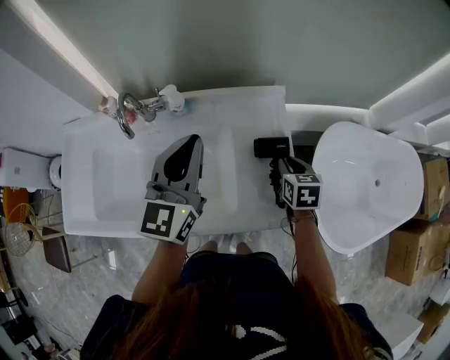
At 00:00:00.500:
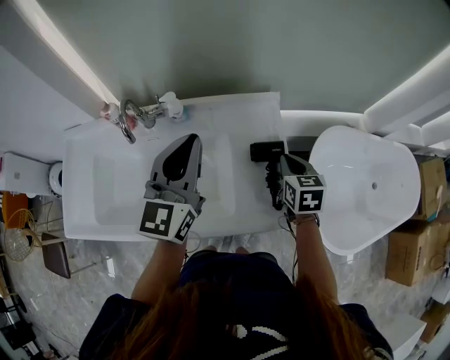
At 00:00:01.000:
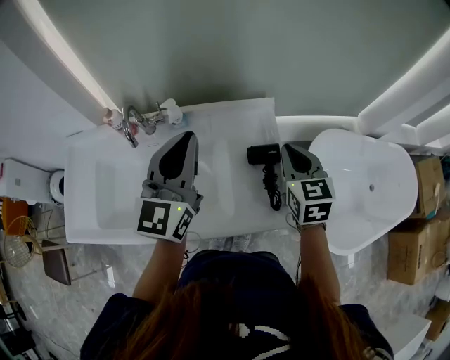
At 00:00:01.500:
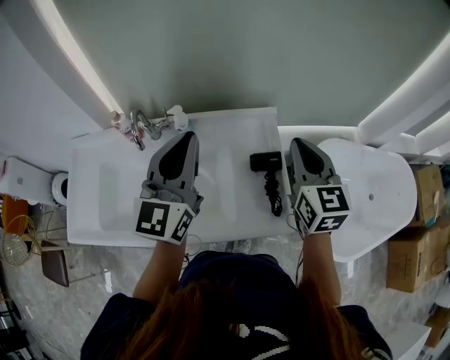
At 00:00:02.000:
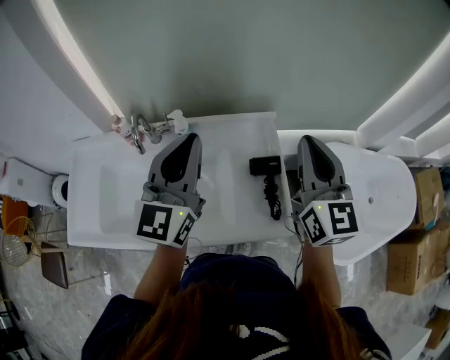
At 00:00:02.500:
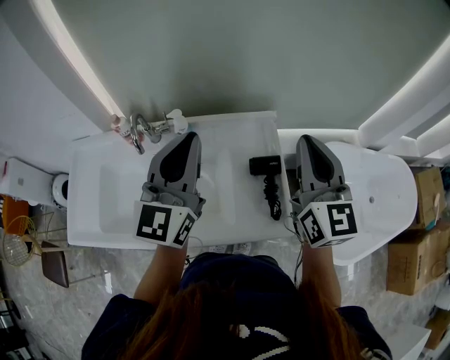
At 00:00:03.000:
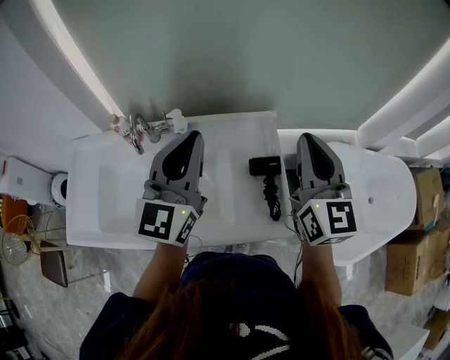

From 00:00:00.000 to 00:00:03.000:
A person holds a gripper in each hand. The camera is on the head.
From 00:00:00.000 to 00:00:01.500: The right gripper travels upward by roughly 25 cm, and angles its fingers upward, by some 30 degrees. Meanwhile the left gripper travels upward by about 10 cm.
From 00:00:01.500 to 00:00:03.000: The right gripper travels upward by approximately 5 cm.

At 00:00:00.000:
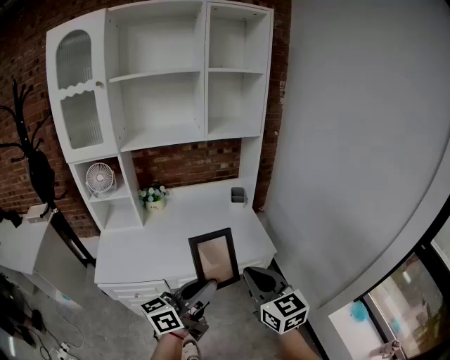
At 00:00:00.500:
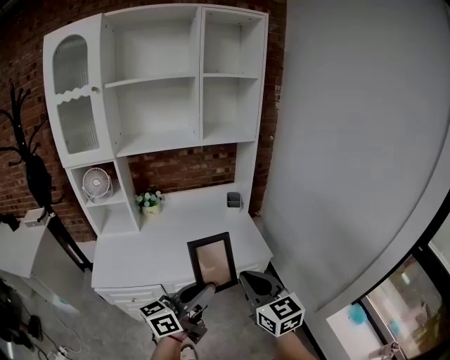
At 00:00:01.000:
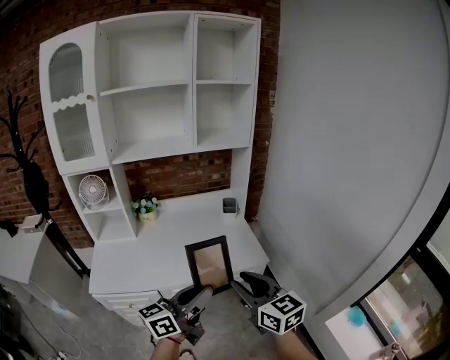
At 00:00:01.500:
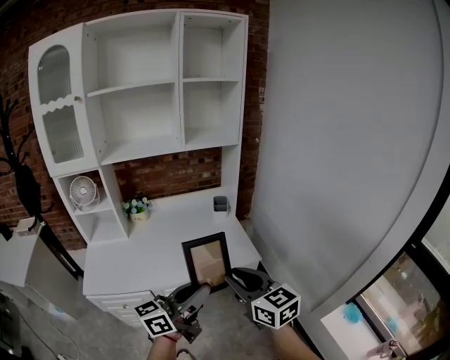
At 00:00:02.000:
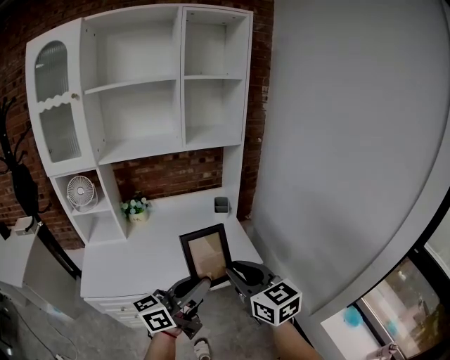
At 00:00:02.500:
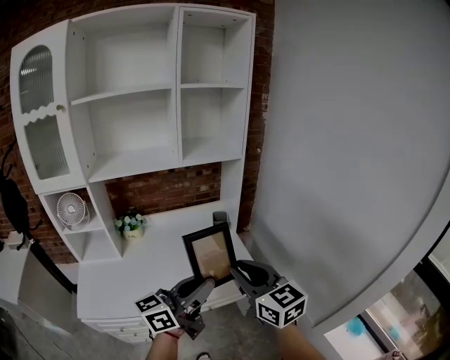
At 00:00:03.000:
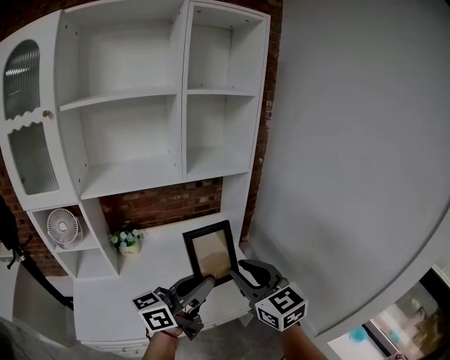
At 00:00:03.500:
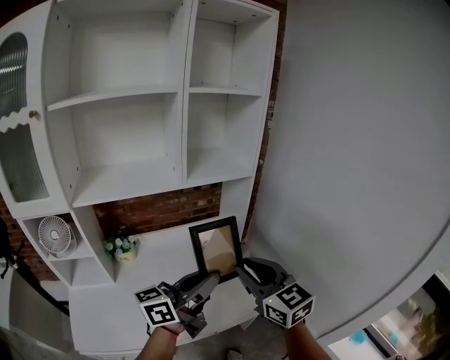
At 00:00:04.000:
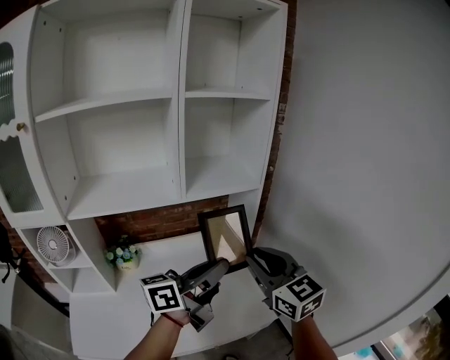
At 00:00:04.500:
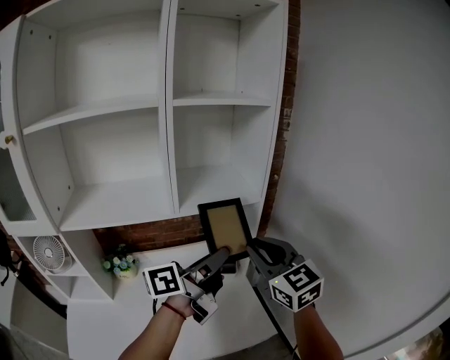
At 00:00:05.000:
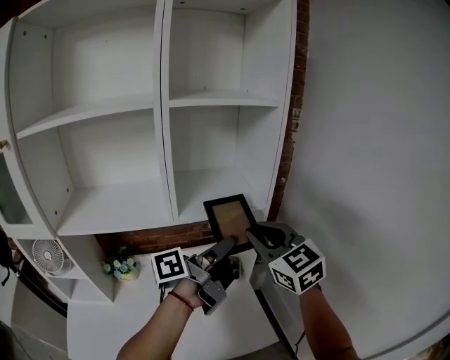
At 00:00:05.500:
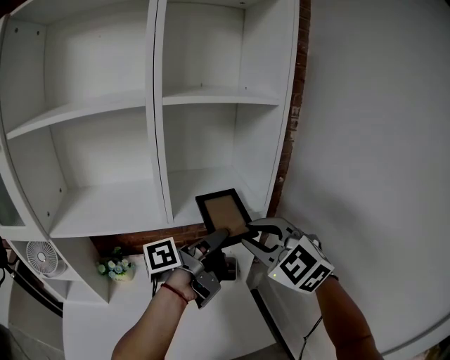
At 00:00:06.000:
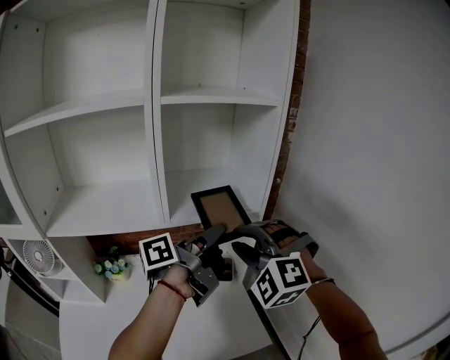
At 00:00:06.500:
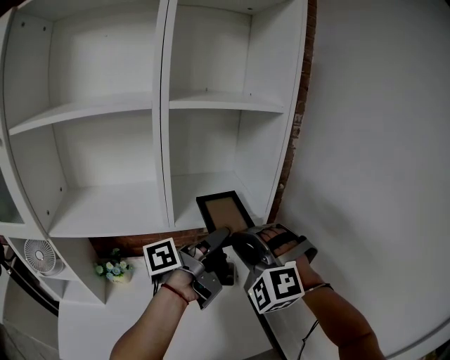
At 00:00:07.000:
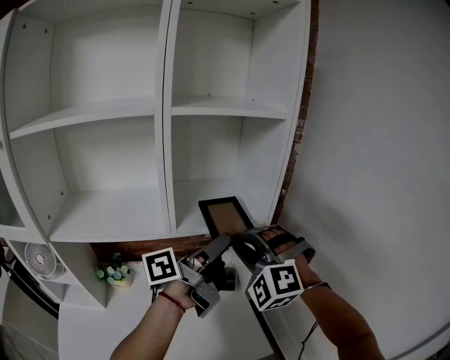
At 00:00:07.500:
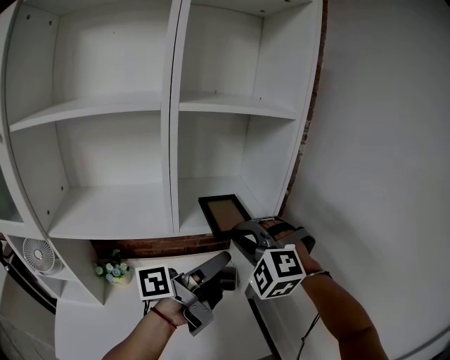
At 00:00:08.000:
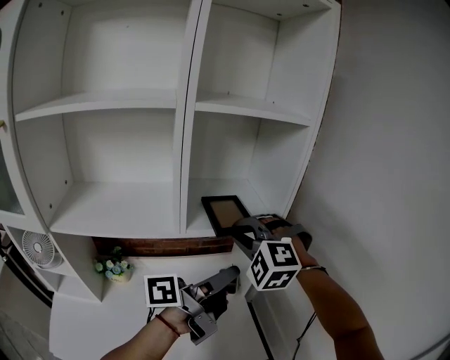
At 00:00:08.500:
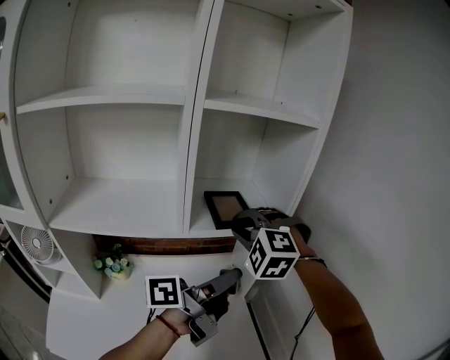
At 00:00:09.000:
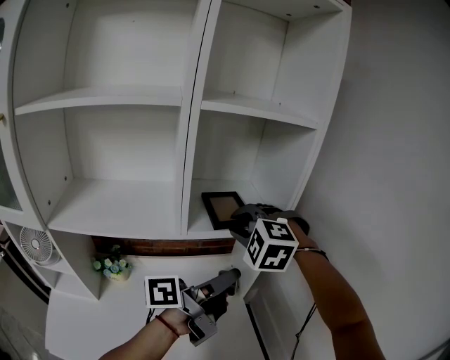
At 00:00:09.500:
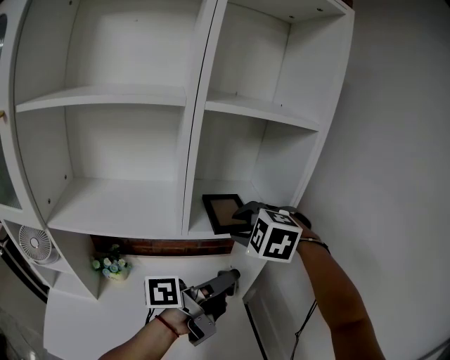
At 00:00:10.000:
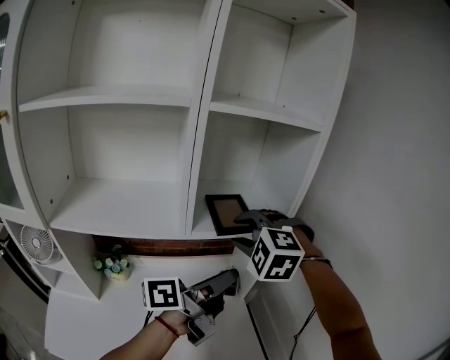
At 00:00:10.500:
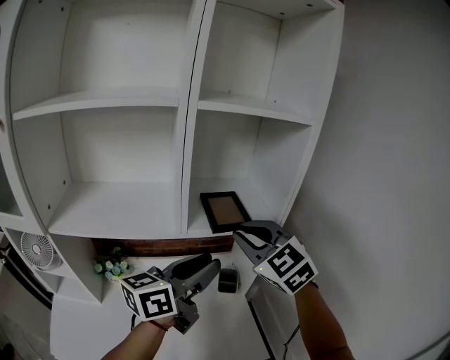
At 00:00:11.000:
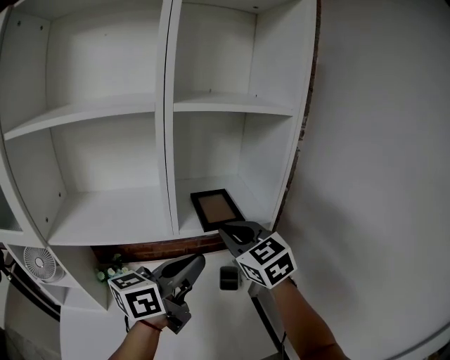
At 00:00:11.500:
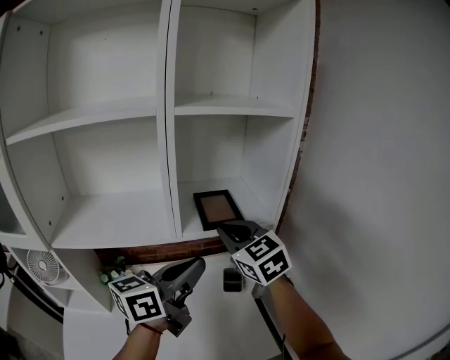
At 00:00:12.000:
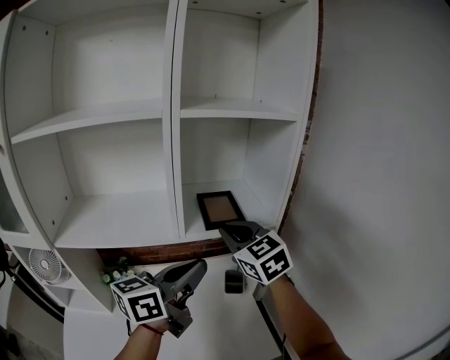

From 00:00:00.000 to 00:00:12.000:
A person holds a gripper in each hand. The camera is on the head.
From 00:00:00.000 to 00:00:02.000: The two grippers go roughly 5 cm forward.
From 00:00:02.000 to 00:00:04.000: Both grippers move forward, roughly 30 cm.
From 00:00:04.000 to 00:00:06.000: The two grippers go some 15 cm forward. The right gripper rotates around the line of its fingers by roughly 70 degrees, counterclockwise from behind, while the left gripper rotates roughly 40 degrees.
From 00:00:06.000 to 00:00:08.000: The left gripper goes roughly 5 cm backward, and opens; the right gripper travels forward and to the left by roughly 10 cm.
From 00:00:08.000 to 00:00:10.000: The right gripper opens.
From 00:00:10.000 to 00:00:12.000: The right gripper rolls clockwise, seen from behind, by some 50 degrees, and closes its fingers; the left gripper shifts some 5 cm to the left, swivels roughly 40 degrees, and closes up.

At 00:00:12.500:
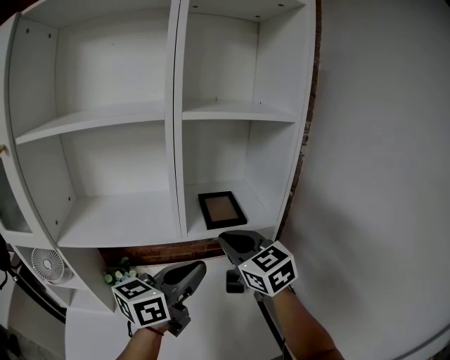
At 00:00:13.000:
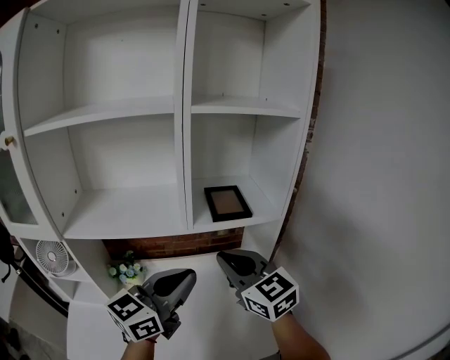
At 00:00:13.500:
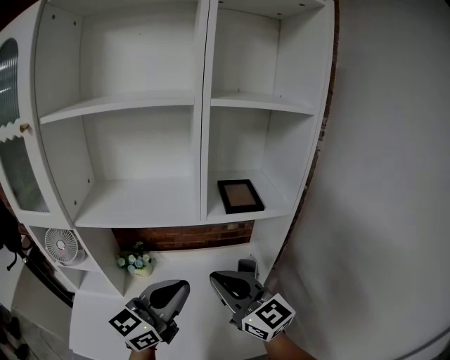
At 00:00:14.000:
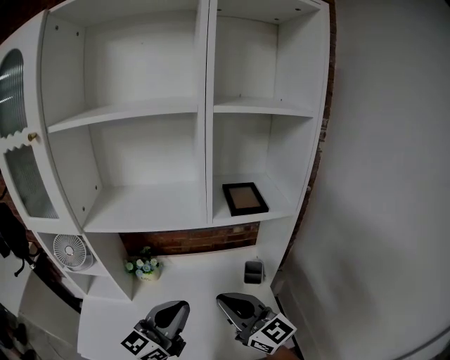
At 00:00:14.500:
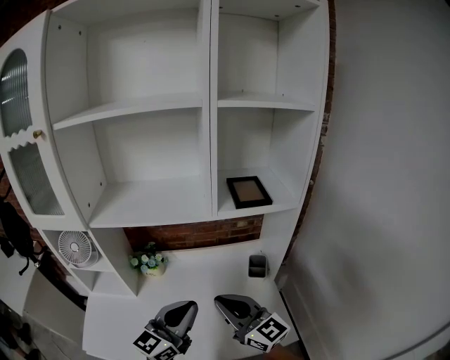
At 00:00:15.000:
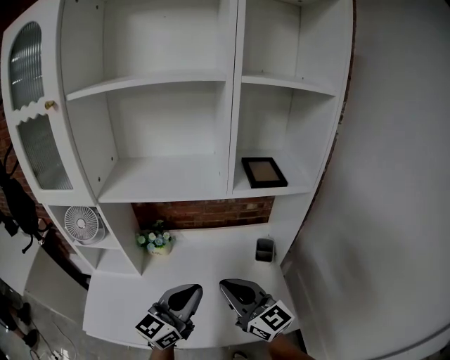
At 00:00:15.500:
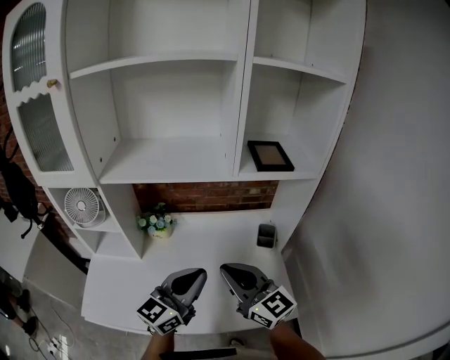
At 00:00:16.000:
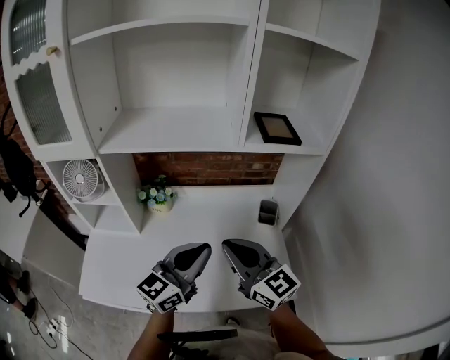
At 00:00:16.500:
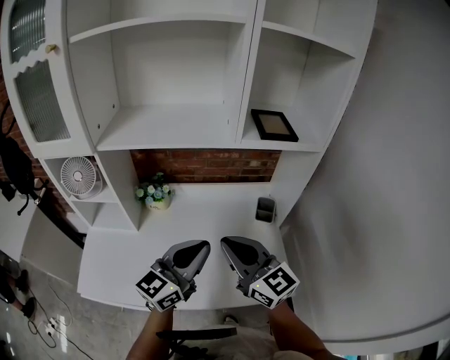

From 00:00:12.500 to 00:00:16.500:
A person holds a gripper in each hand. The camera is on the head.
From 00:00:12.500 to 00:00:14.500: The right gripper goes some 25 cm backward, downward and to the left, and rotates about 30 degrees. The left gripper travels downward, backward and to the left by some 20 cm, and changes its angle by roughly 20 degrees.
From 00:00:14.500 to 00:00:16.500: The grippers make only small movements.

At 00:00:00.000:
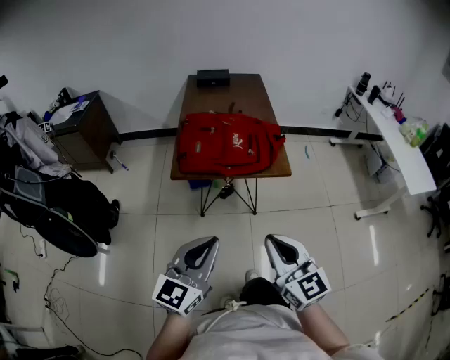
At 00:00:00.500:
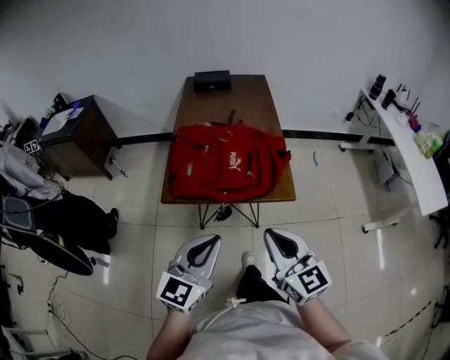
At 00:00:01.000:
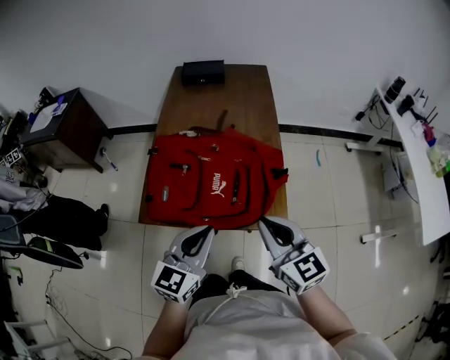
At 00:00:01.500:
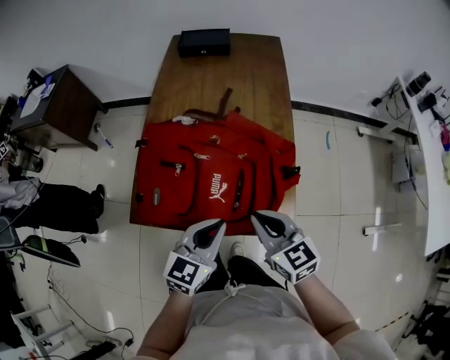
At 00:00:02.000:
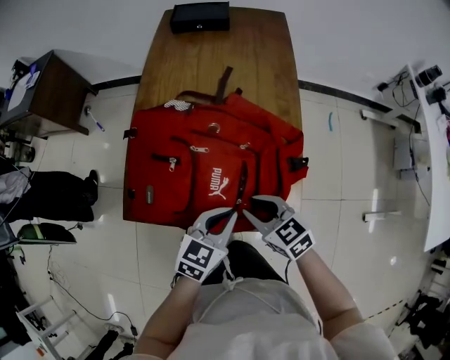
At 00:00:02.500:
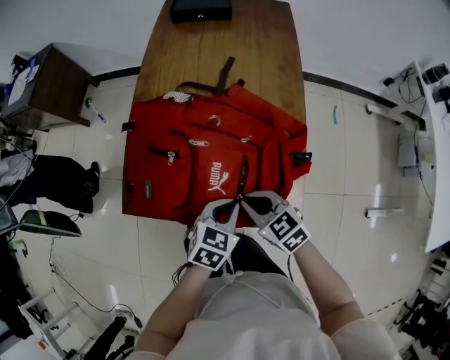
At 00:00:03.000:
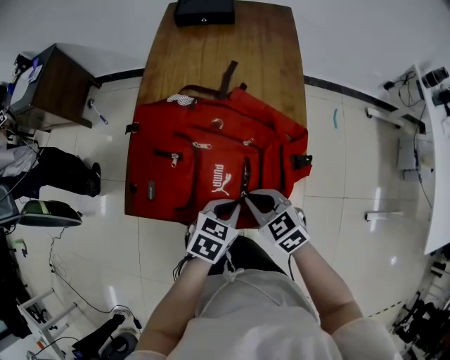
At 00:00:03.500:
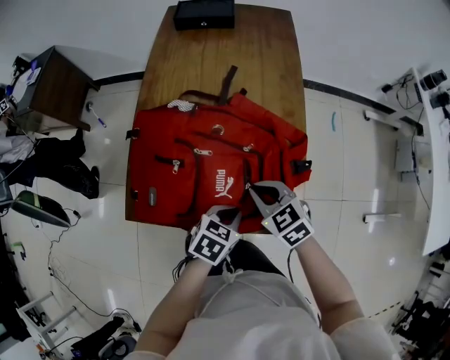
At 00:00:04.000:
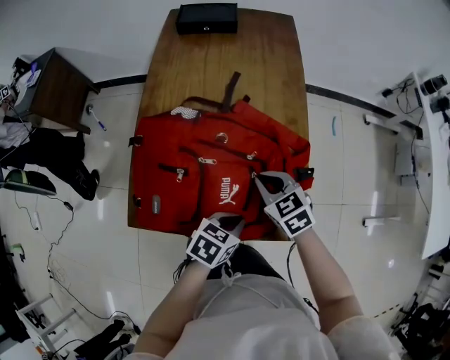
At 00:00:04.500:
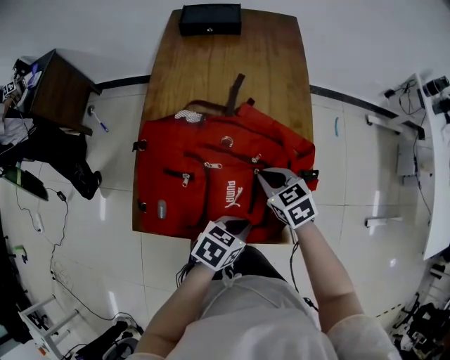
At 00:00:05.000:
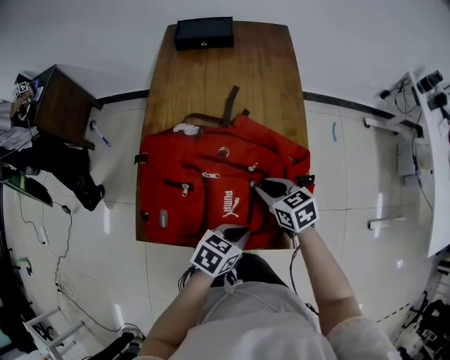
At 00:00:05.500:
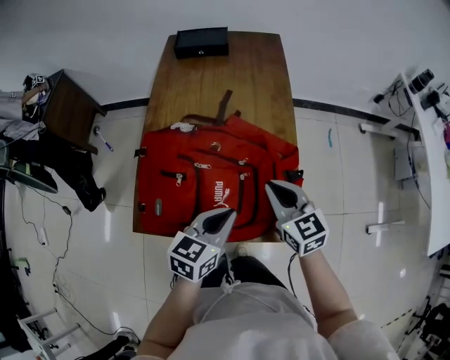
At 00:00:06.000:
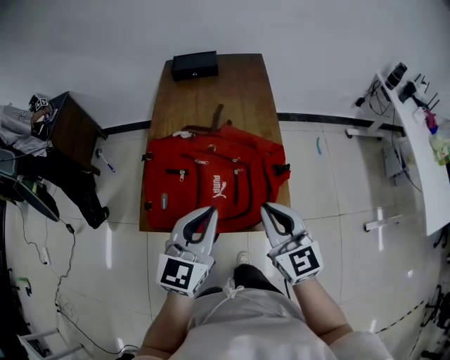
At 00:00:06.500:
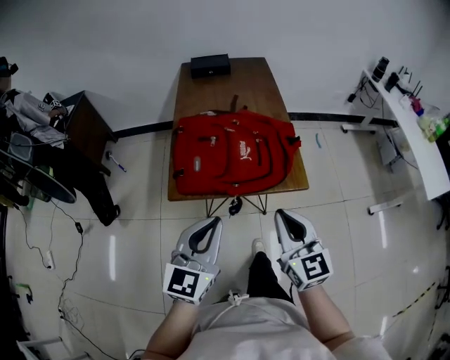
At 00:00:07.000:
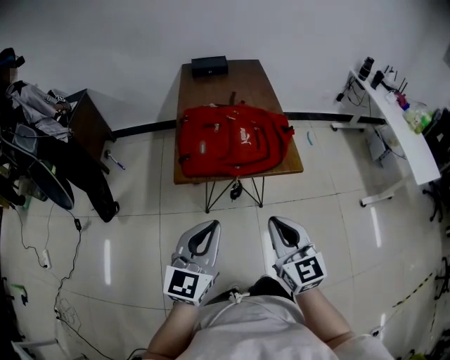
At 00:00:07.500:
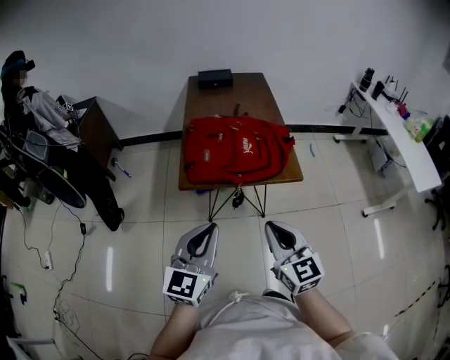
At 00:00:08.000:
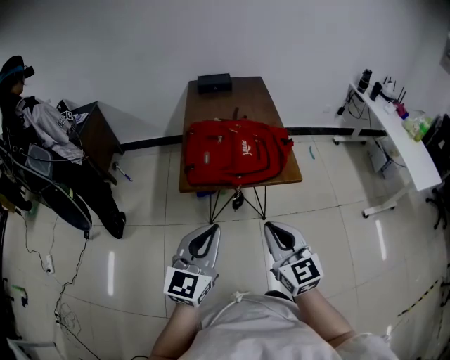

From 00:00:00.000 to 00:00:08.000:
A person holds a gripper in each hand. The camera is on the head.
From 00:00:00.000 to 00:00:02.000: The two grippers travel together, forward, roughly 50 cm. Both grippers travel together downward, some 25 cm. The right gripper turns by approximately 40 degrees, and opens its fingers. The left gripper turns by some 30 degrees.
From 00:00:02.000 to 00:00:04.000: The right gripper travels forward by roughly 10 cm, and closes, while the left gripper moves downward, some 5 cm, and rotates about 30 degrees.
From 00:00:04.000 to 00:00:06.000: The left gripper goes some 25 cm upward, and angles its fingers upward, by roughly 40 degrees. Meanwhile the right gripper moves upward and backward, roughly 25 cm, and tilts its fingers roughly 40 degrees upward.
From 00:00:06.000 to 00:00:08.000: The grippers both shift backward by roughly 35 cm.
